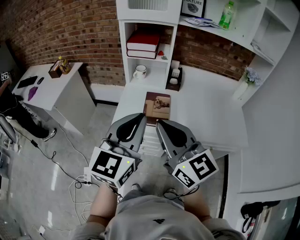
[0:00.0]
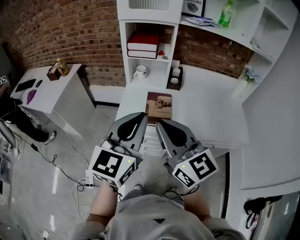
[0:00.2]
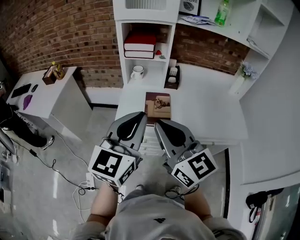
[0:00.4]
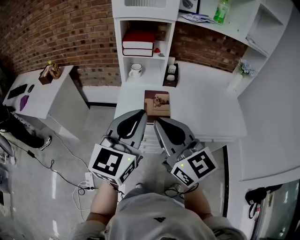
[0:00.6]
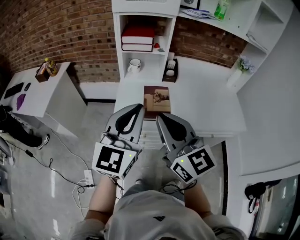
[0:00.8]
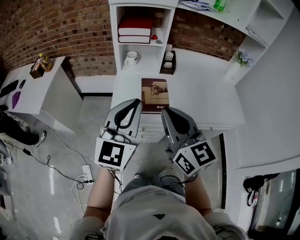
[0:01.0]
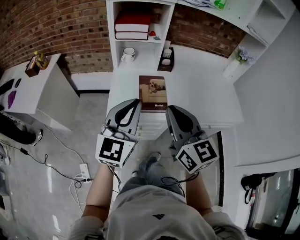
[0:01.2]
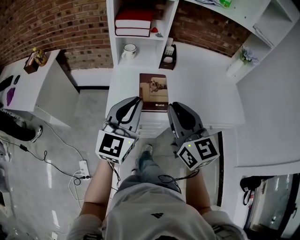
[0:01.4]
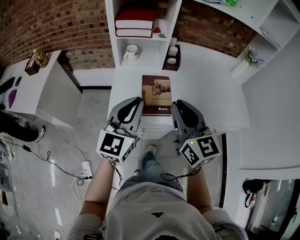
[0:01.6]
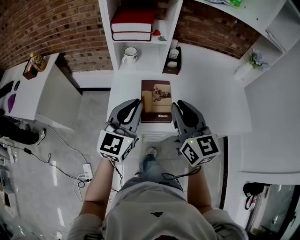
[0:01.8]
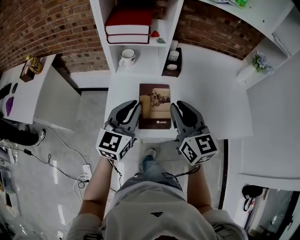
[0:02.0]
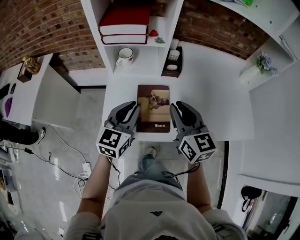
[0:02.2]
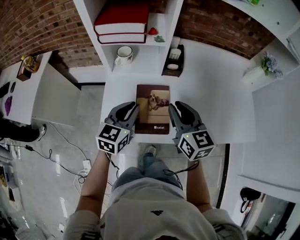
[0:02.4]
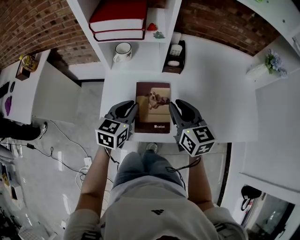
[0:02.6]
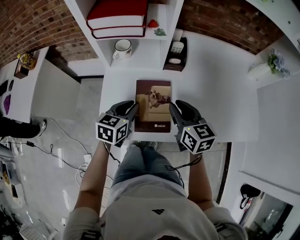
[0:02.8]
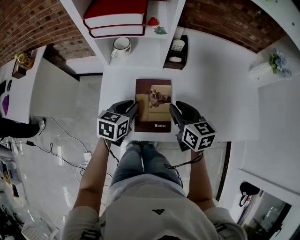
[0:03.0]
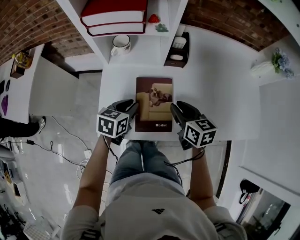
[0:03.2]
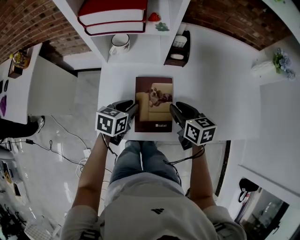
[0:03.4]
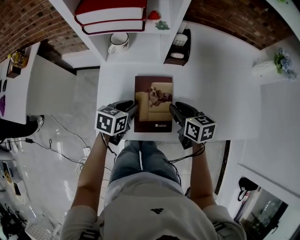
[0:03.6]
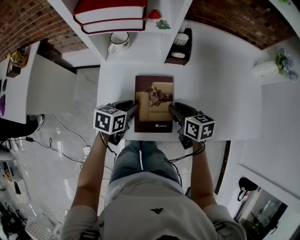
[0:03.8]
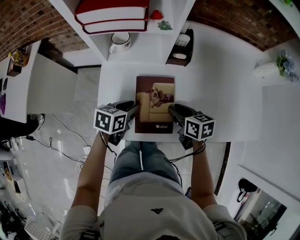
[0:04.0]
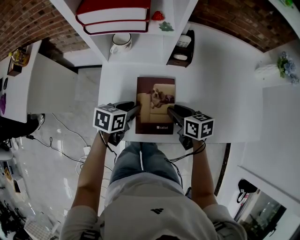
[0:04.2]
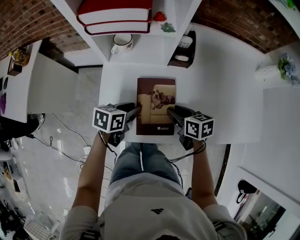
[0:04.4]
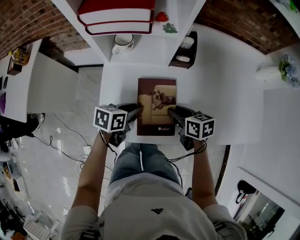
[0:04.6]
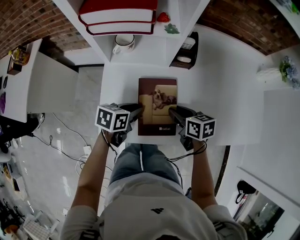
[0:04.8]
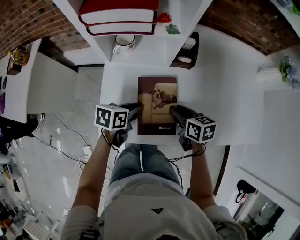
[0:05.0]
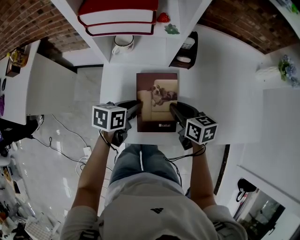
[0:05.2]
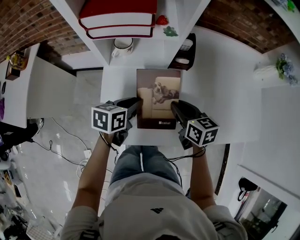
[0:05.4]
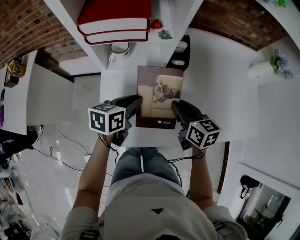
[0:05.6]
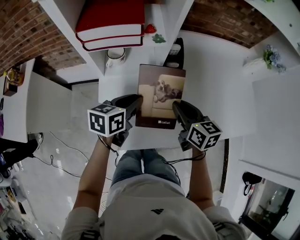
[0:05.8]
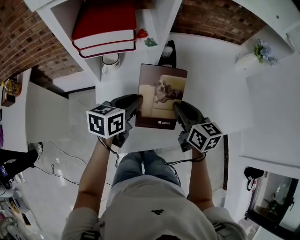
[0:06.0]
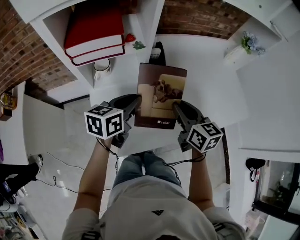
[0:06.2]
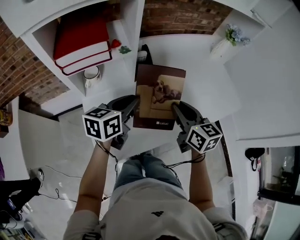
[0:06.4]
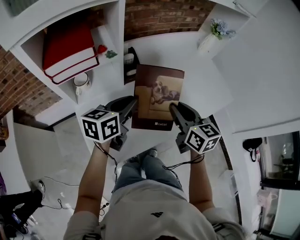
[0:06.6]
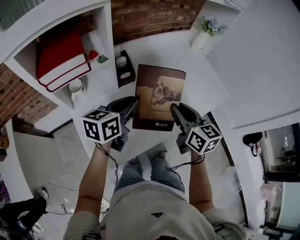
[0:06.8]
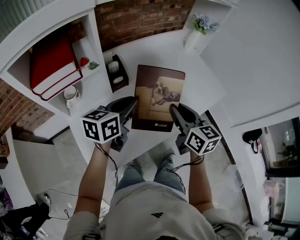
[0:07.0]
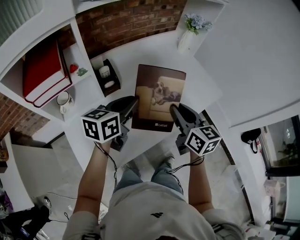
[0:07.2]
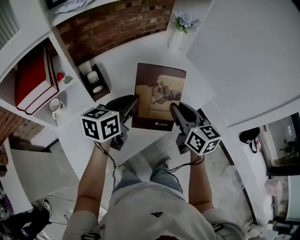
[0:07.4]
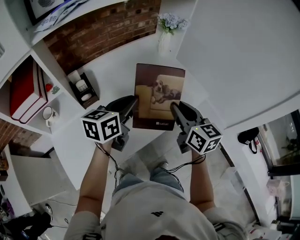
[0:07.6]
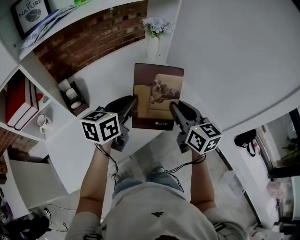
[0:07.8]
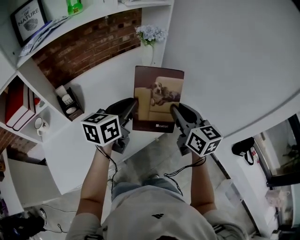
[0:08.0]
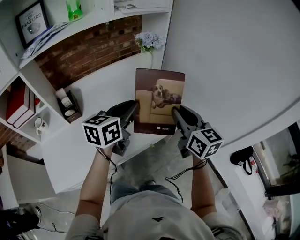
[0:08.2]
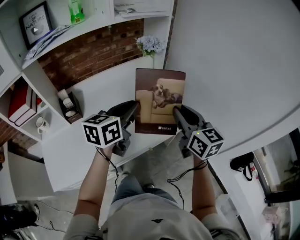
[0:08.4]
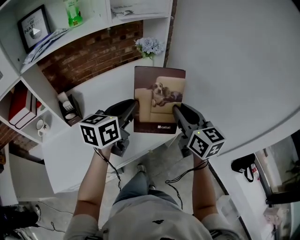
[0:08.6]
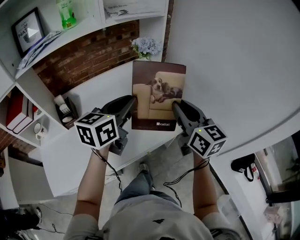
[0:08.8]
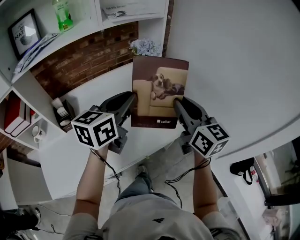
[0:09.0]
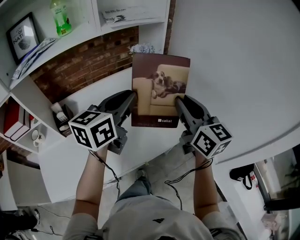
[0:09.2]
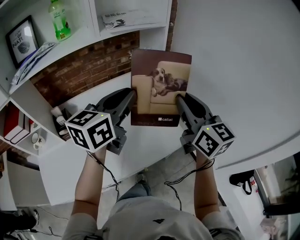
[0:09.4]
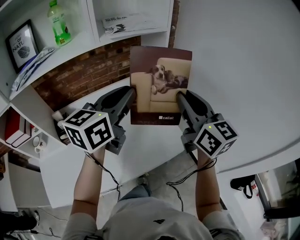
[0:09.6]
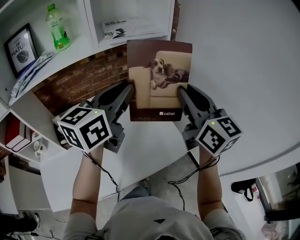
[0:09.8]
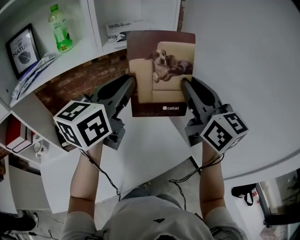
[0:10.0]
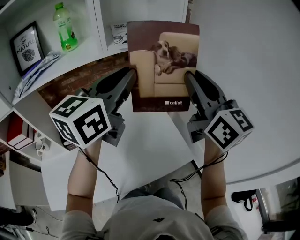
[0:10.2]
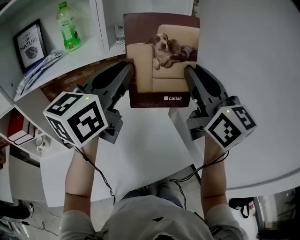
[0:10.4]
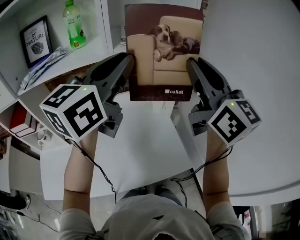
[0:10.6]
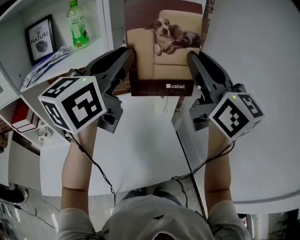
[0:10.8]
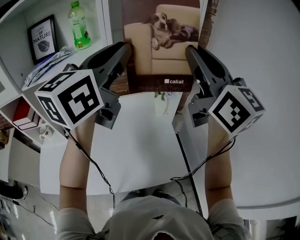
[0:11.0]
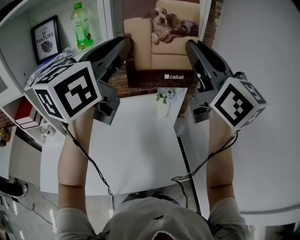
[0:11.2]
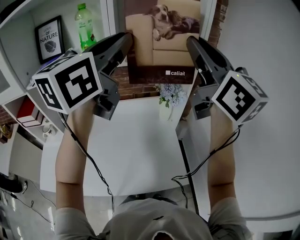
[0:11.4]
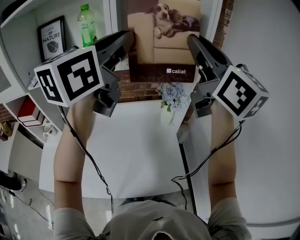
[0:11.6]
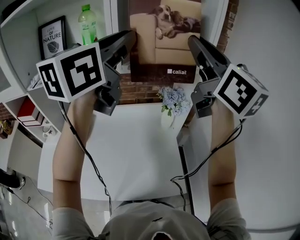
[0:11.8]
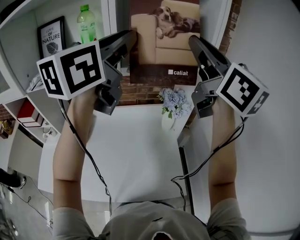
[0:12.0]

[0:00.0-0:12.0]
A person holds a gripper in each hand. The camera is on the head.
0:00.0 to 0:01.6: Both grippers travel together forward and downward, some 15 cm. The right gripper swivels about 20 degrees.
0:01.6 to 0:03.0: Both grippers travel together downward and forward, some 25 cm. The left gripper tips its fingers downward by about 40 degrees. Meanwhile the right gripper swivels about 30 degrees.
0:03.0 to 0:04.4: The right gripper is displaced downward by approximately 10 cm, and swivels some 20 degrees. Meanwhile the left gripper turns by approximately 20 degrees.
0:04.4 to 0:06.0: The right gripper shifts about 15 cm upward, and turns by roughly 30 degrees, while the left gripper heads upward and forward, covering approximately 15 cm.
0:06.0 to 0:07.6: The grippers both shift to the right by approximately 30 cm. The right gripper changes its angle by about 30 degrees; the left gripper turns by some 30 degrees.
0:07.6 to 0:09.0: The right gripper travels to the right, forward and upward by approximately 25 cm. The left gripper shifts approximately 25 cm to the right, upward and forward.
0:09.0 to 0:10.4: The grippers both shift upward and forward by about 20 cm. The left gripper rotates roughly 20 degrees.
0:10.4 to 0:12.0: The two grippers go about 15 cm forward and upward.

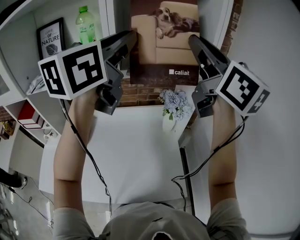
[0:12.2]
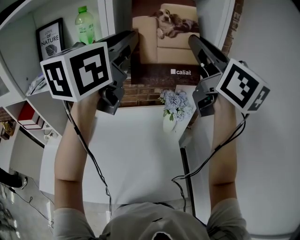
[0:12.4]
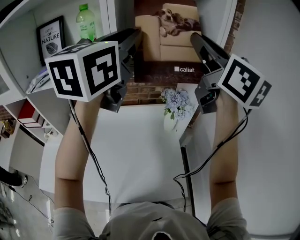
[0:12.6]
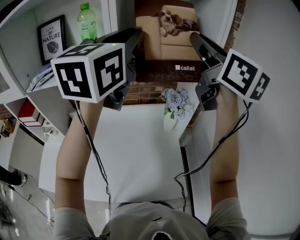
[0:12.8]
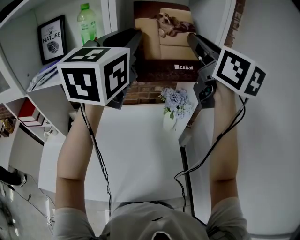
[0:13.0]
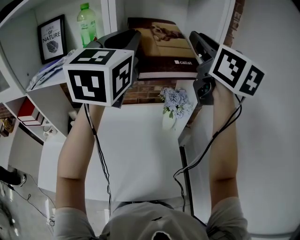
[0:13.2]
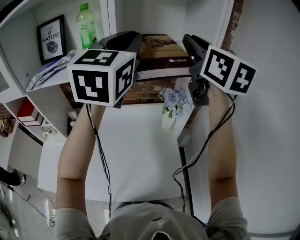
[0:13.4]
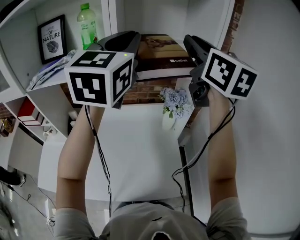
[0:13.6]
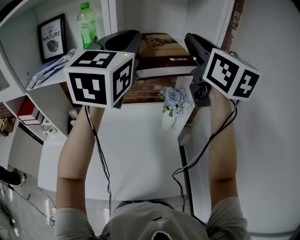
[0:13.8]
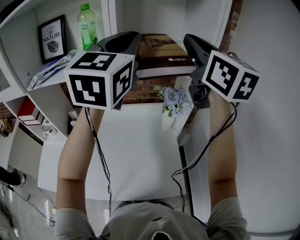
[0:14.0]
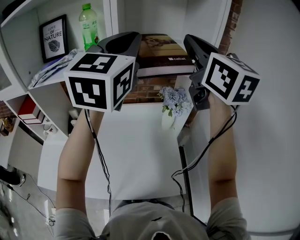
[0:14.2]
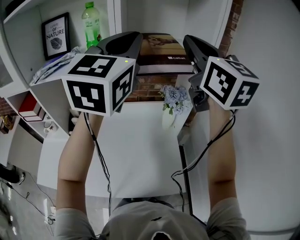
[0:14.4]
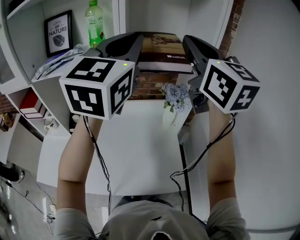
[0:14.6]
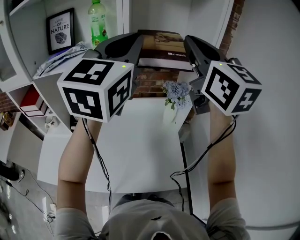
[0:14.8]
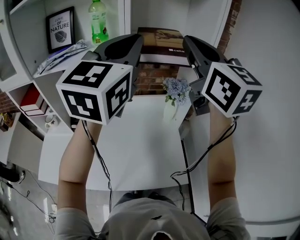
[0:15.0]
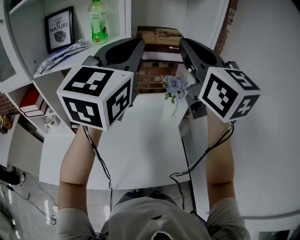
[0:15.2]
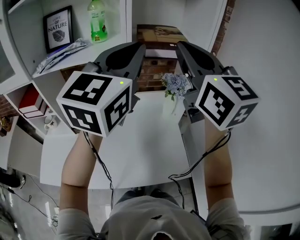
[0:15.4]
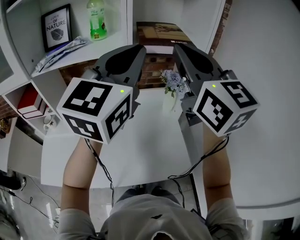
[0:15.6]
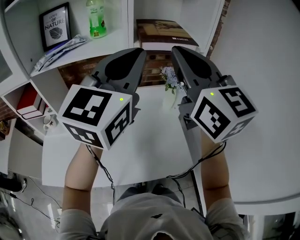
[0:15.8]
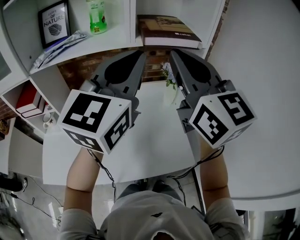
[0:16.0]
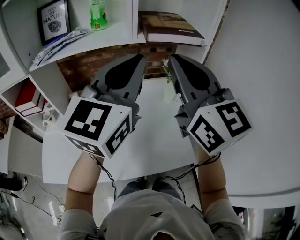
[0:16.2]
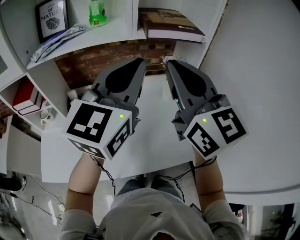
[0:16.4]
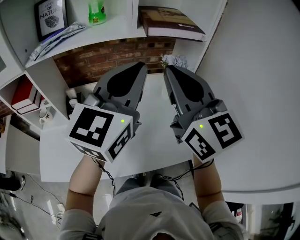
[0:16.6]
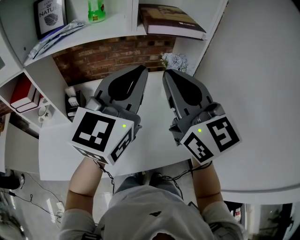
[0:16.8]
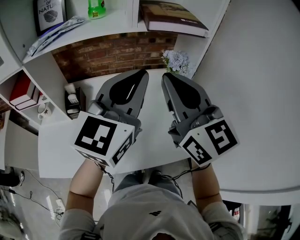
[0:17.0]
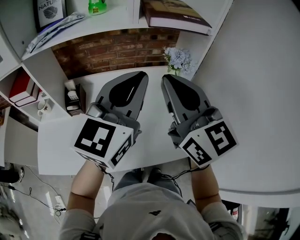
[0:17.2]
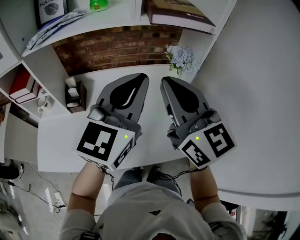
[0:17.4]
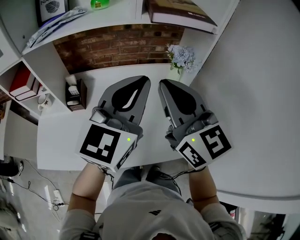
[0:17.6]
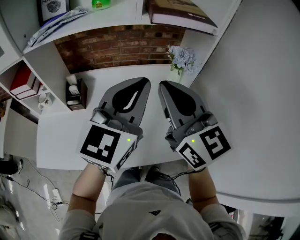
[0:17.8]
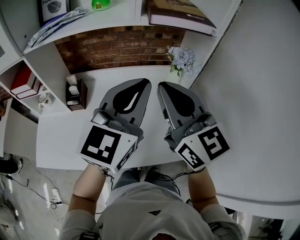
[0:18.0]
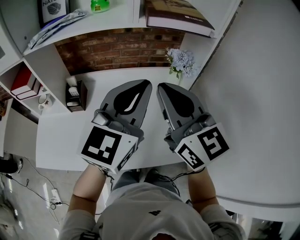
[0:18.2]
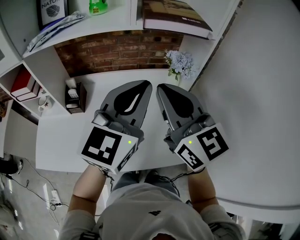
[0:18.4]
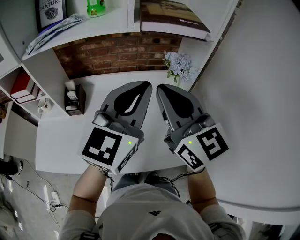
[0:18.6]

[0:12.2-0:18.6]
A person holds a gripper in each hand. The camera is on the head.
0:12.2 to 0:13.8: The left gripper rotates about 20 degrees.
0:13.8 to 0:15.4: The right gripper shifts some 15 cm backward and to the left; the left gripper heads backward, covering some 10 cm.
0:15.4 to 0:17.0: The right gripper heads downward, backward and to the left, covering roughly 15 cm. The left gripper shifts about 10 cm downward and backward.
0:17.0 to 0:18.6: The grippers make only small movements.

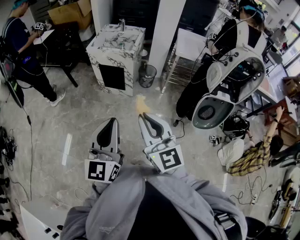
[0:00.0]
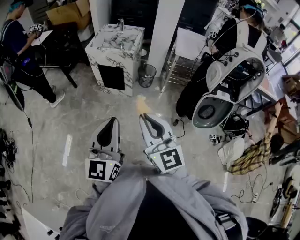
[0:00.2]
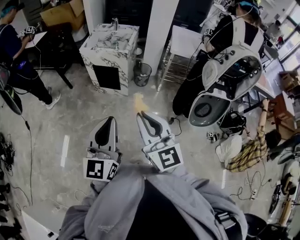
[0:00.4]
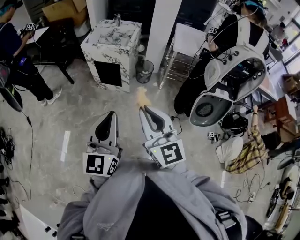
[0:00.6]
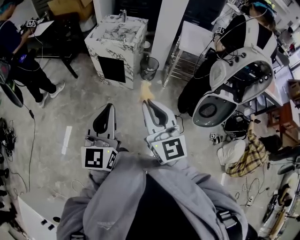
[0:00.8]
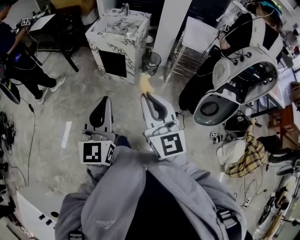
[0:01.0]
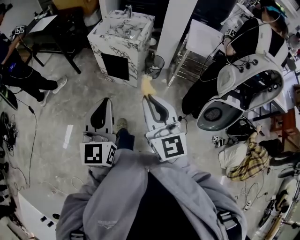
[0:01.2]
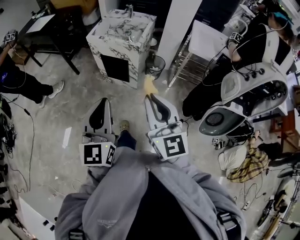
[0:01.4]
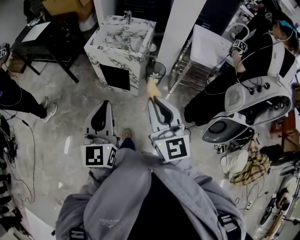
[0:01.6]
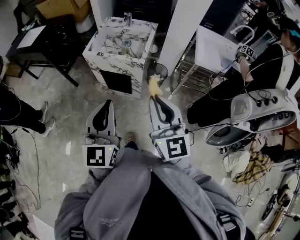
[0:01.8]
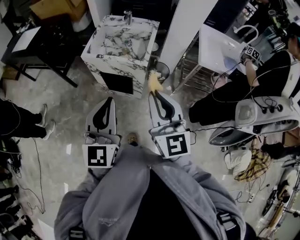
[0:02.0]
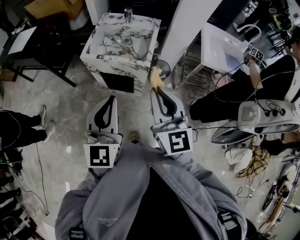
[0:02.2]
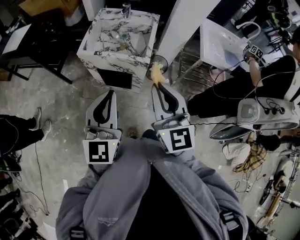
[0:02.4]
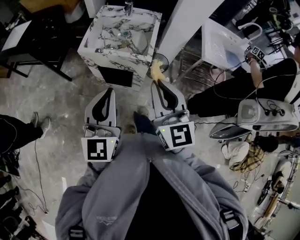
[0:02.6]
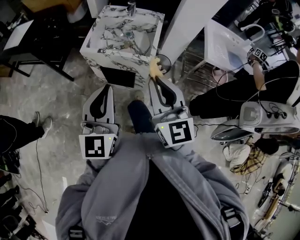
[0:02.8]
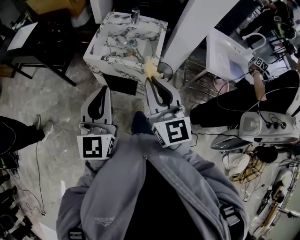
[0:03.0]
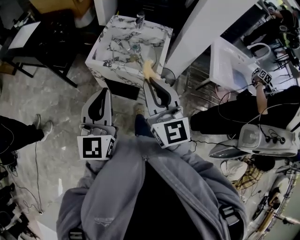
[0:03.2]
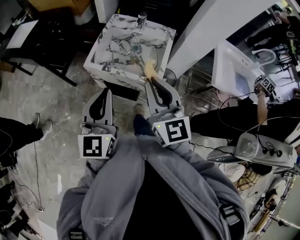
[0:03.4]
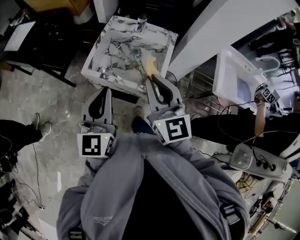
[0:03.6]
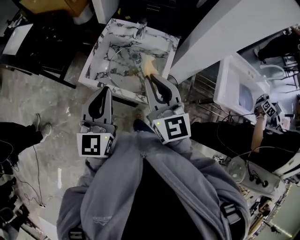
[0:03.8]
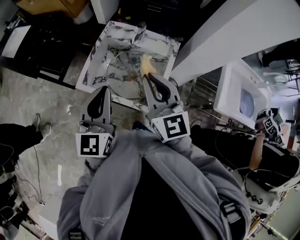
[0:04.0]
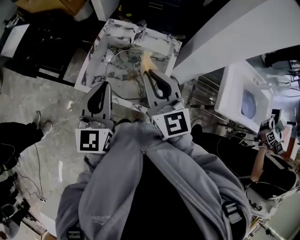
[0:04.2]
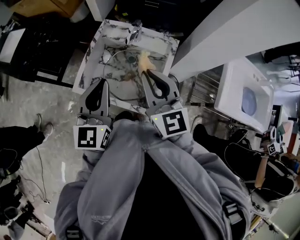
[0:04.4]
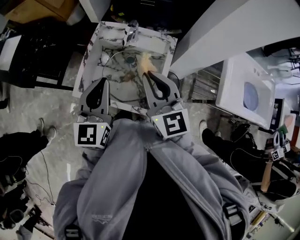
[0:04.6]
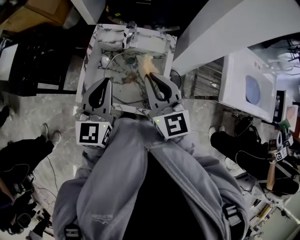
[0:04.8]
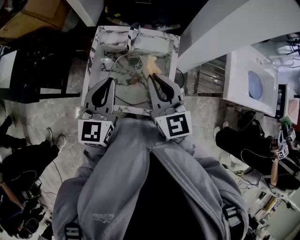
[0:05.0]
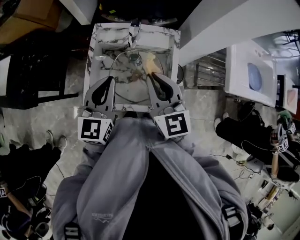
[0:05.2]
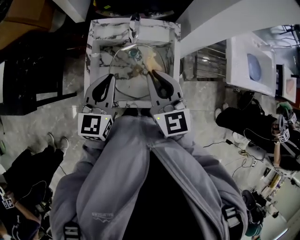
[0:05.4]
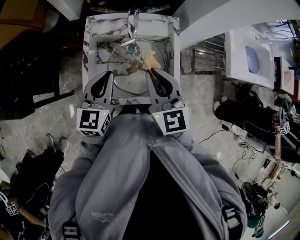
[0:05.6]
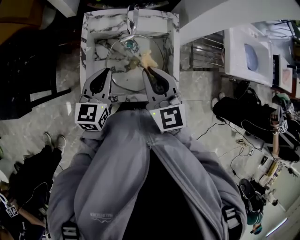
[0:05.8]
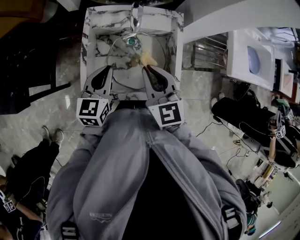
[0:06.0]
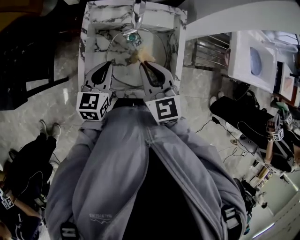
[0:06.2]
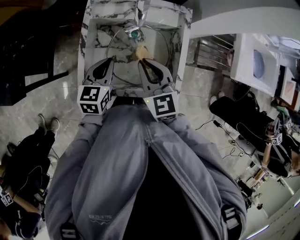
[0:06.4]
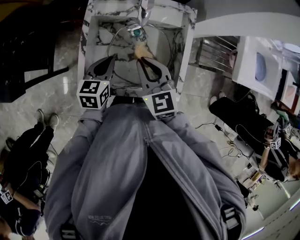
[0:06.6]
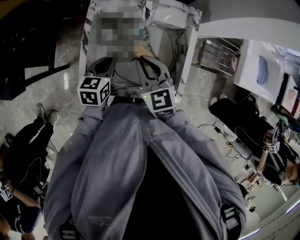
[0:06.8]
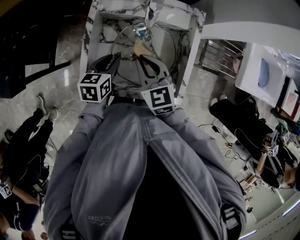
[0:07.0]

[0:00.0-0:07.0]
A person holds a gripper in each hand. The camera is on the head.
0:00.0 to 0:01.4: Both grippers move forward, about 20 cm.
0:01.4 to 0:02.8: The two grippers go approximately 35 cm forward.
0:02.8 to 0:04.2: Both grippers travel together forward, roughly 35 cm.
0:04.2 to 0:05.6: The right gripper shifts by some 10 cm, and turns by some 20 degrees; the left gripper changes place by some 20 cm, and turns by some 30 degrees.
0:05.6 to 0:07.0: The two grippers go some 15 cm downward. The right gripper turns by some 20 degrees. Meanwhile the left gripper changes its angle by approximately 30 degrees, and opens up.
